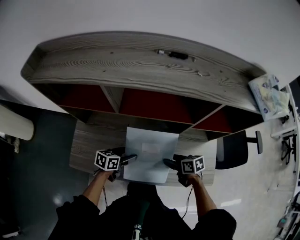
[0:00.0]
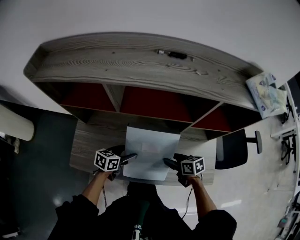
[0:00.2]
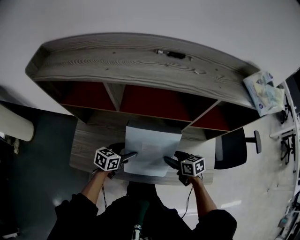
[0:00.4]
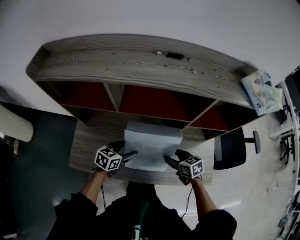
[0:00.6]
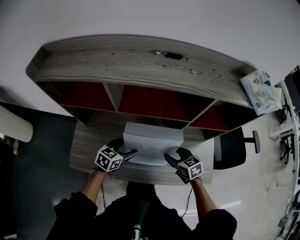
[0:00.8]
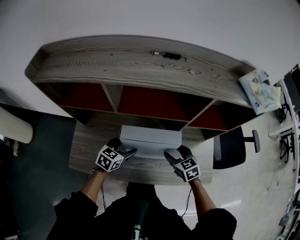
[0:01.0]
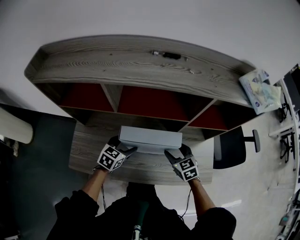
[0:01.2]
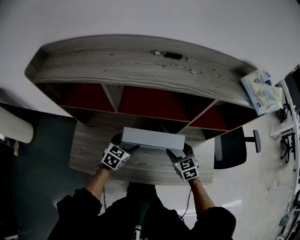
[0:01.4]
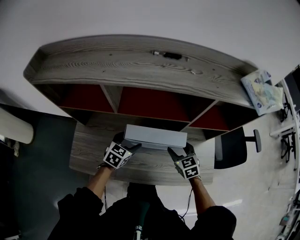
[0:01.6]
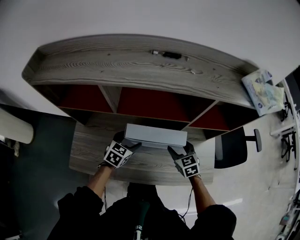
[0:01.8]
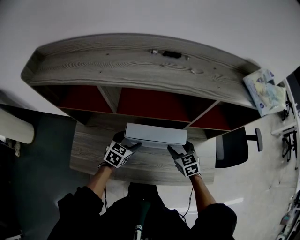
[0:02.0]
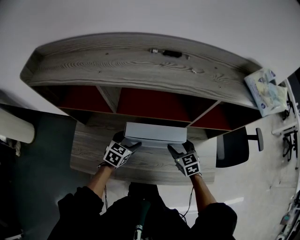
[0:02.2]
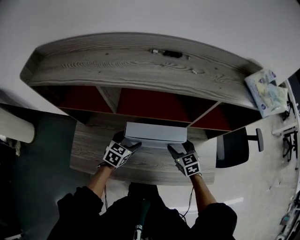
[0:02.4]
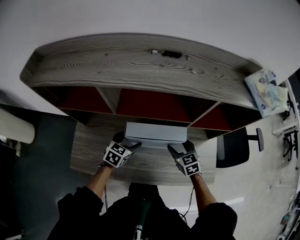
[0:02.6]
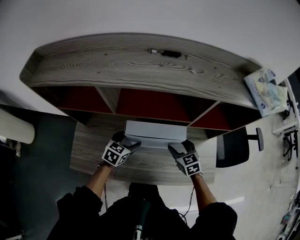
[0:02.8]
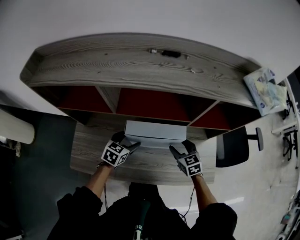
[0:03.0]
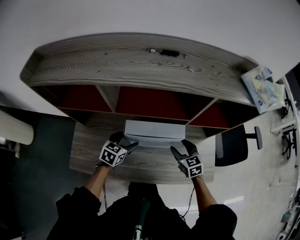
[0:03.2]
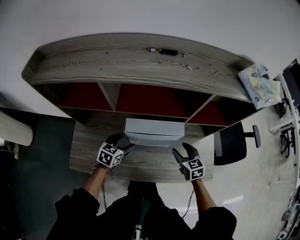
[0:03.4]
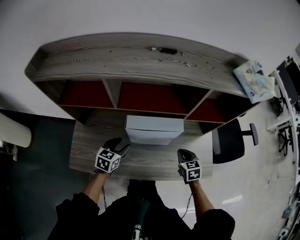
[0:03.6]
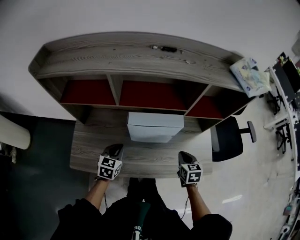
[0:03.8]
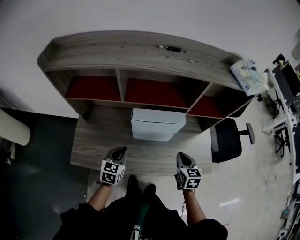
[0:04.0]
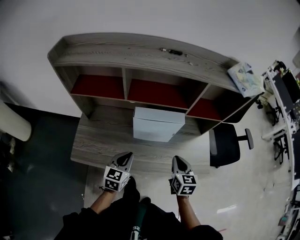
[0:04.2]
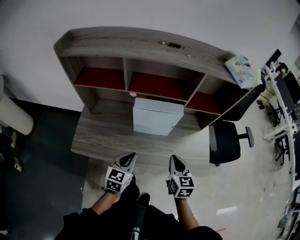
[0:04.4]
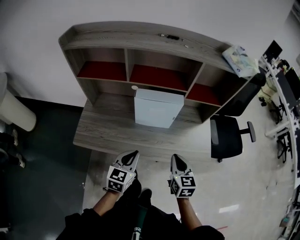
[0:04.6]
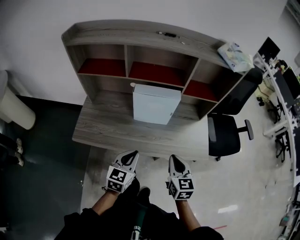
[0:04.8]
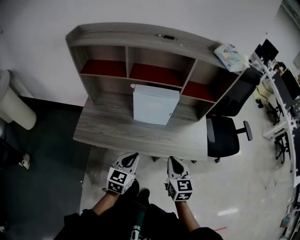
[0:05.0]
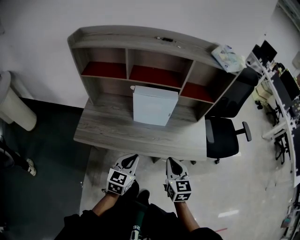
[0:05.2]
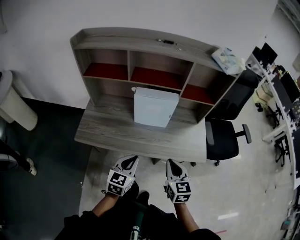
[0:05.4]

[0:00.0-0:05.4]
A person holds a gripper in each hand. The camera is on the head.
0:00.0 to 0:01.4: The right gripper travels upward by about 5 cm, and rotates approximately 50 degrees, while the left gripper goes roughly 5 cm forward, and rotates approximately 30 degrees.
0:01.4 to 0:02.8: The grippers move only a little.
0:02.8 to 0:04.0: Both grippers move backward, about 10 cm. The right gripper swivels some 30 degrees, and closes its fingers; the left gripper closes up.
0:04.0 to 0:05.4: The right gripper travels backward and upward by approximately 20 cm; the left gripper goes roughly 25 cm backward and to the right.

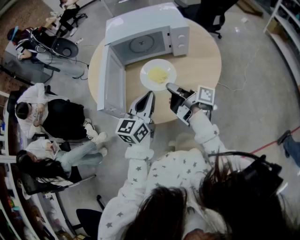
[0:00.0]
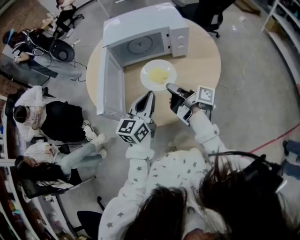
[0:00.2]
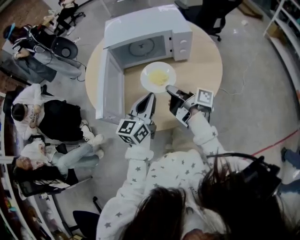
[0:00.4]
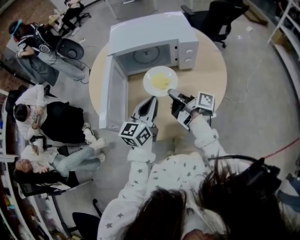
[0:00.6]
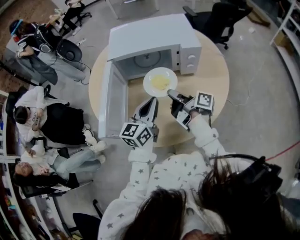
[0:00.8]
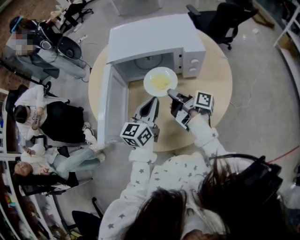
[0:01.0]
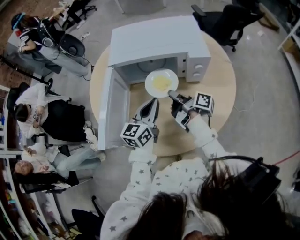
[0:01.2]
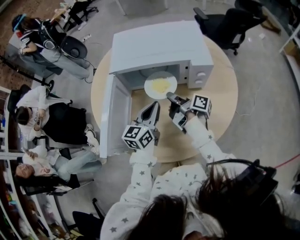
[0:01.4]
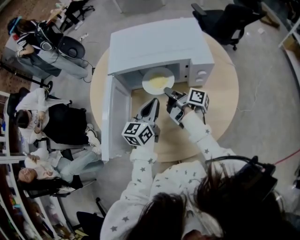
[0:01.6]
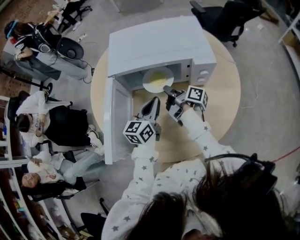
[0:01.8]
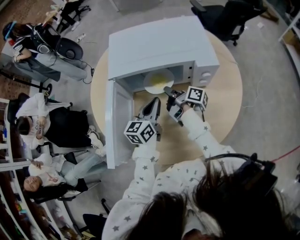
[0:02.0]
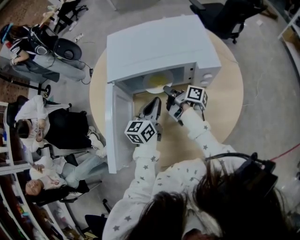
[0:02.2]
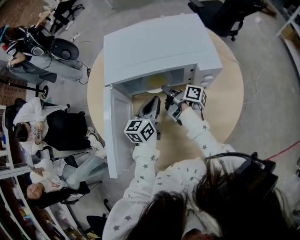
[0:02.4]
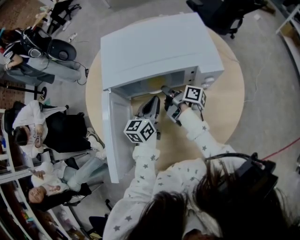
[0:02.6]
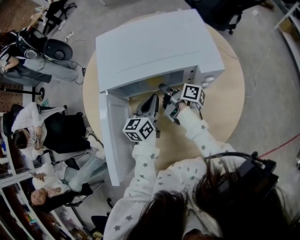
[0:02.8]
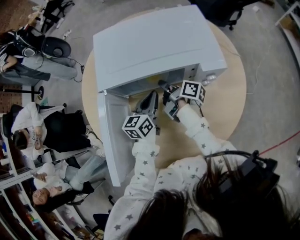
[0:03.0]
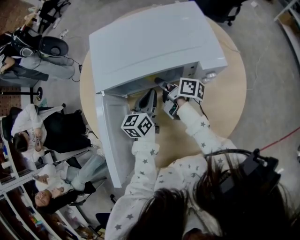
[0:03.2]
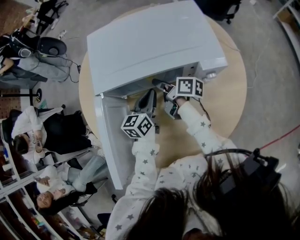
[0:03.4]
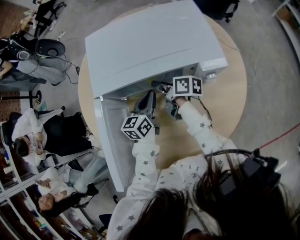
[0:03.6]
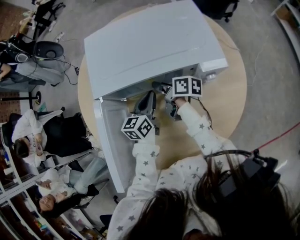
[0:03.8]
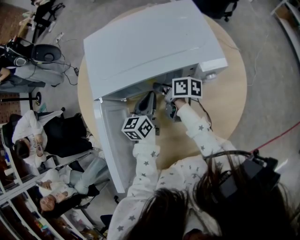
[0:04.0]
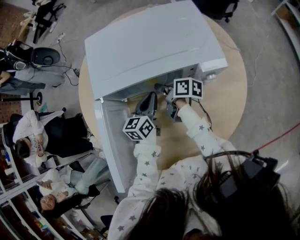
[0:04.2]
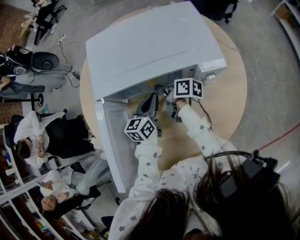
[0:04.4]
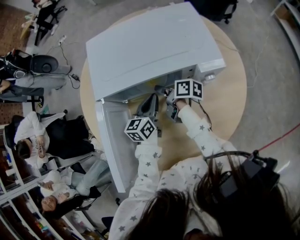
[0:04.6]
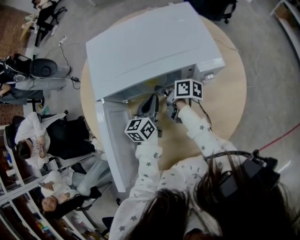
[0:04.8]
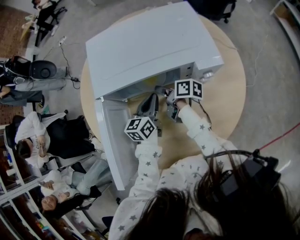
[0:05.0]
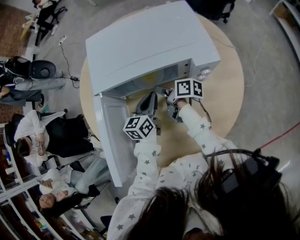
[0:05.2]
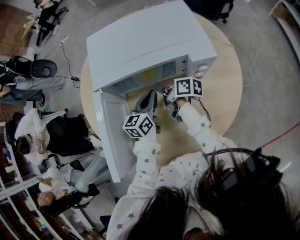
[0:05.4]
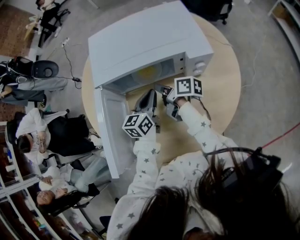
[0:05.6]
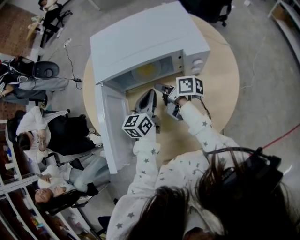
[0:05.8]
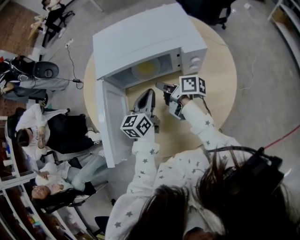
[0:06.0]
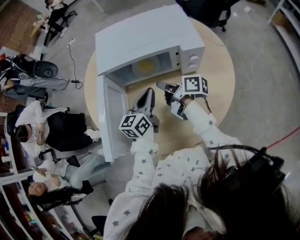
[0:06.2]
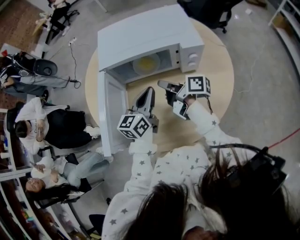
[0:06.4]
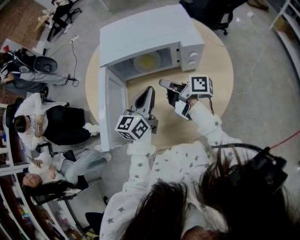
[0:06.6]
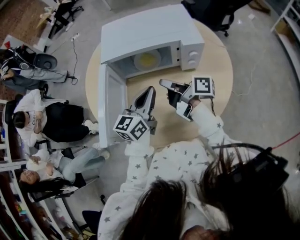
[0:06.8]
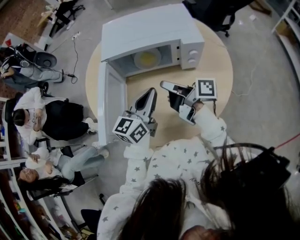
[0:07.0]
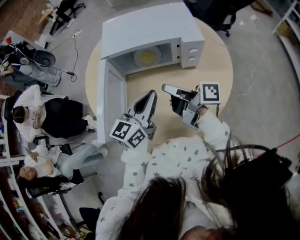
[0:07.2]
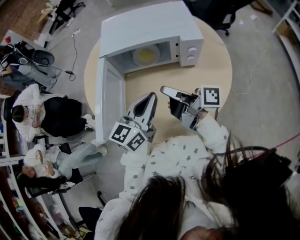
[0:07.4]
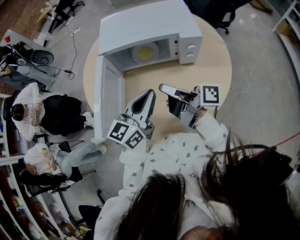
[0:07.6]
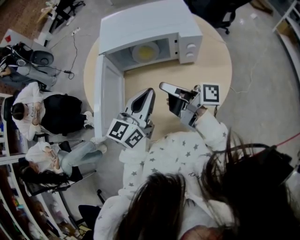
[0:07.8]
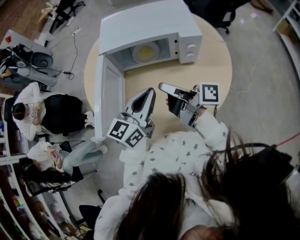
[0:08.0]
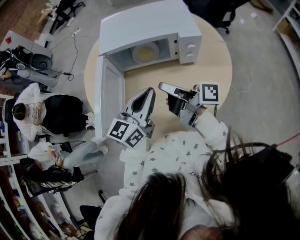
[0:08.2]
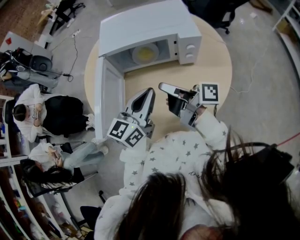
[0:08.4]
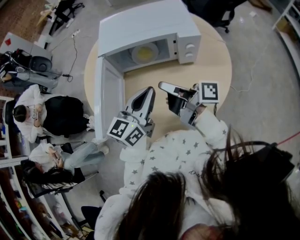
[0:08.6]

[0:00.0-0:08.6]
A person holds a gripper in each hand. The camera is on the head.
0:00.0 to 0:01.4: The left gripper moves about 20 cm.
0:01.4 to 0:02.8: The left gripper shifts by some 10 cm.
0:04.4 to 0:05.8: The left gripper ends up some 10 cm from where it was.
0:05.8 to 0:07.2: The left gripper ends up roughly 20 cm from where it was.

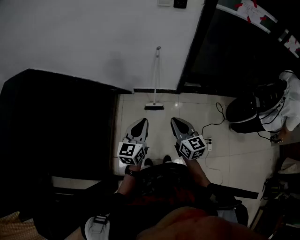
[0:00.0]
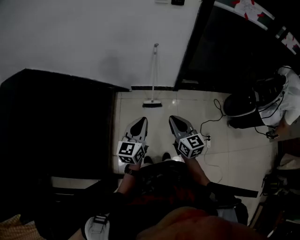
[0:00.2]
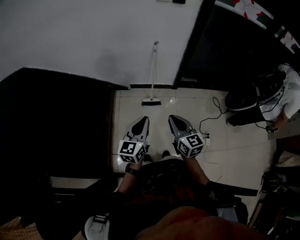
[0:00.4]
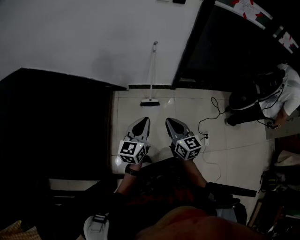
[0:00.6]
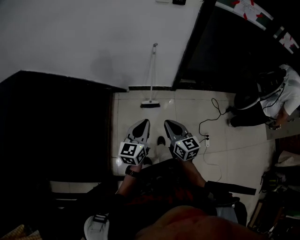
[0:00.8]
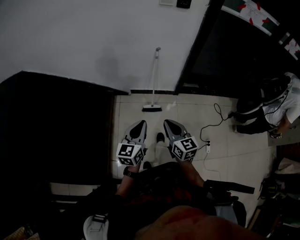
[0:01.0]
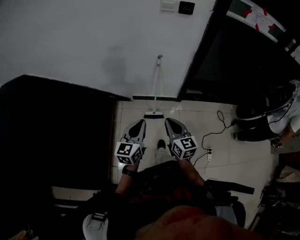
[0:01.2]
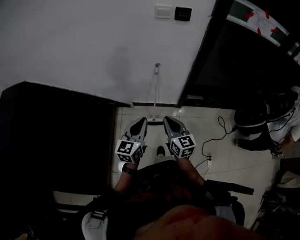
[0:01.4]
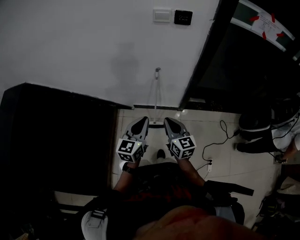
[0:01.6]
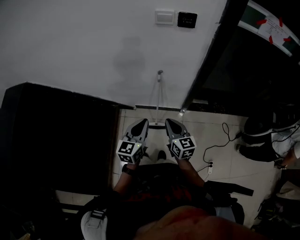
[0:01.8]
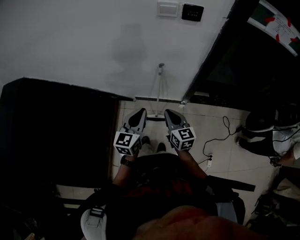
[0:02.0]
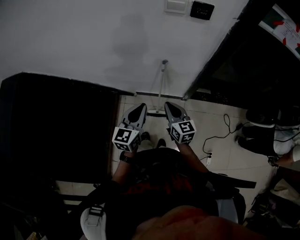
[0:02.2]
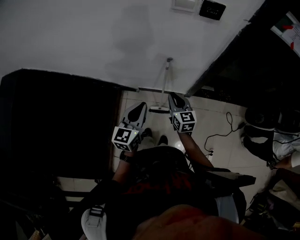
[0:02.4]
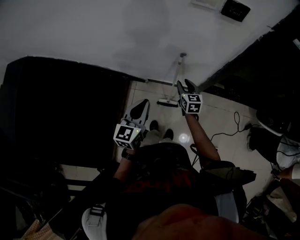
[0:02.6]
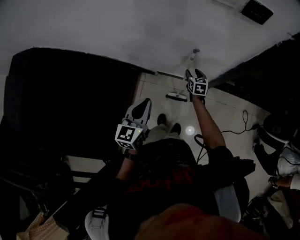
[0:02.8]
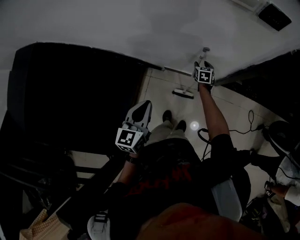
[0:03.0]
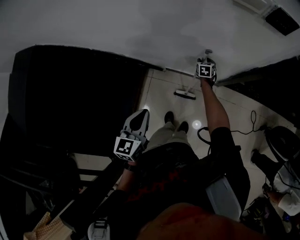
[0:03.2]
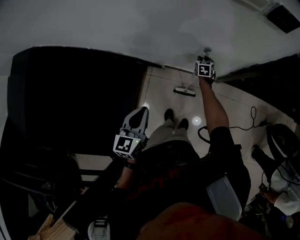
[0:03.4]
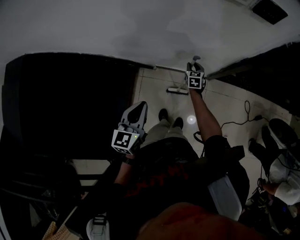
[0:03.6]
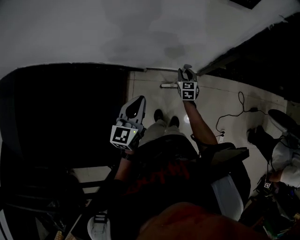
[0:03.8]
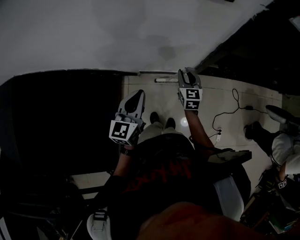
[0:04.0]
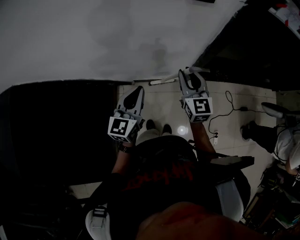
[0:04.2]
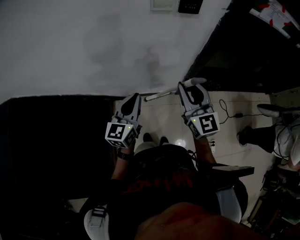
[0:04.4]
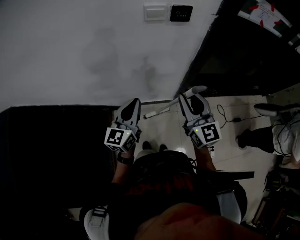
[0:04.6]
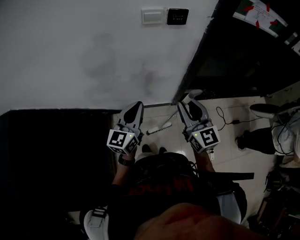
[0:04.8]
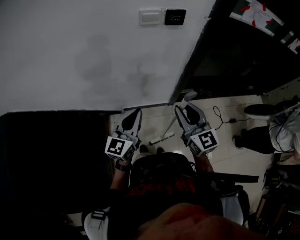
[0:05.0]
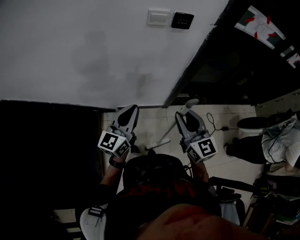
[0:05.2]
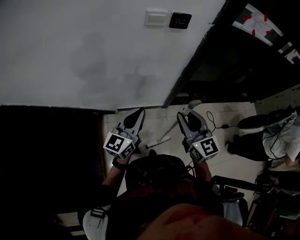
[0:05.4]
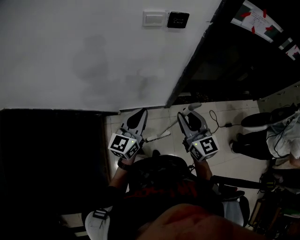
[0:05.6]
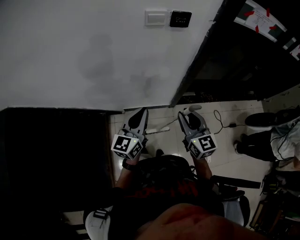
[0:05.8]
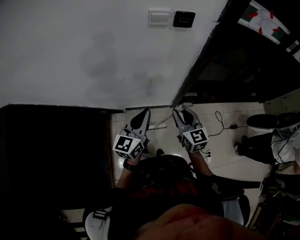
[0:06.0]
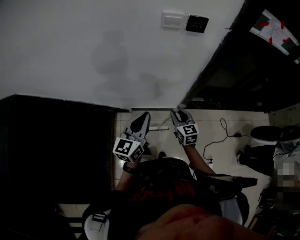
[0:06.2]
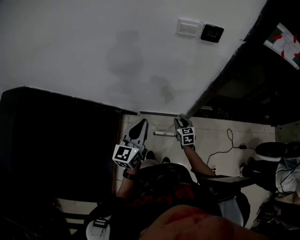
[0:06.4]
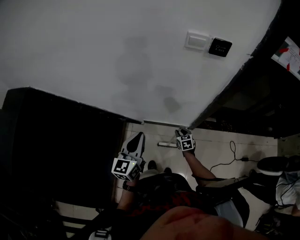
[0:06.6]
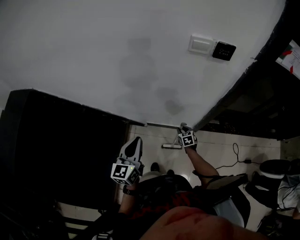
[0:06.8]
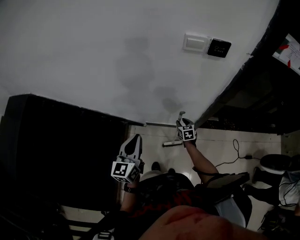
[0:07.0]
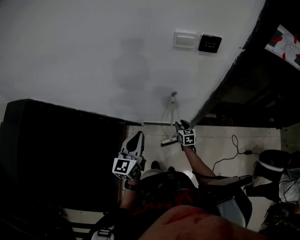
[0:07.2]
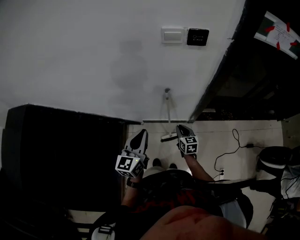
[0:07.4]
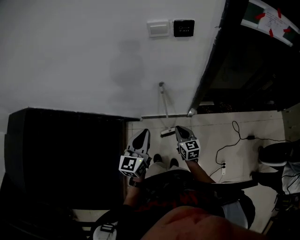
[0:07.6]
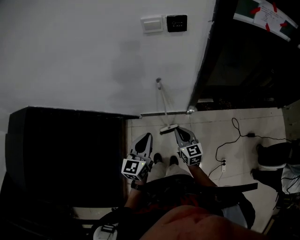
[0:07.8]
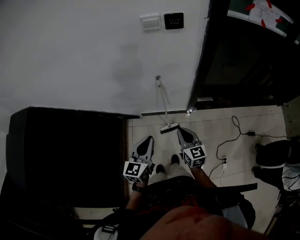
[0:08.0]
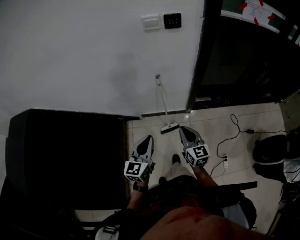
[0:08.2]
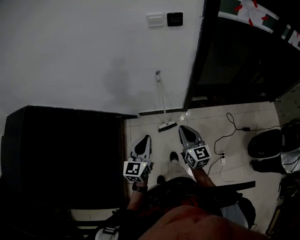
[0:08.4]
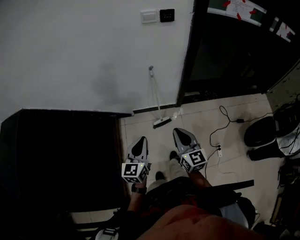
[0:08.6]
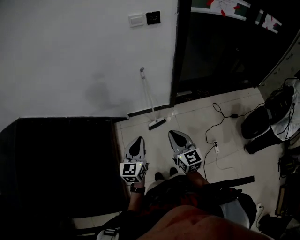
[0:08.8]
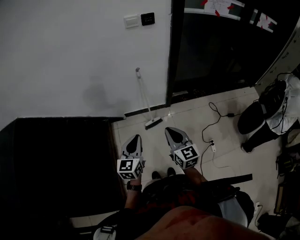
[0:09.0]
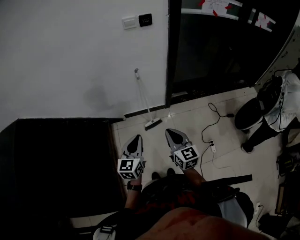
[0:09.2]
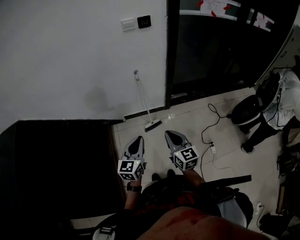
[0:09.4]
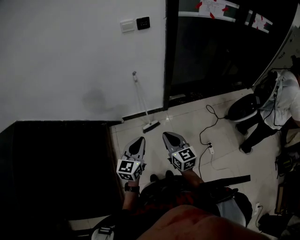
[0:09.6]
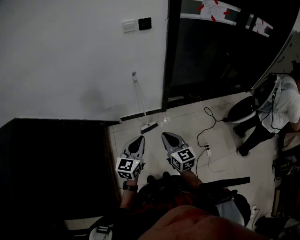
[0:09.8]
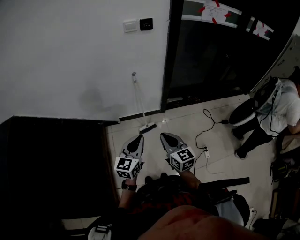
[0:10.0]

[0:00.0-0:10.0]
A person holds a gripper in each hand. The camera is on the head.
0:00.0 to 0:01.4: The grippers both shift forward by about 20 cm.
0:01.4 to 0:02.8: The right gripper is displaced forward and downward by approximately 50 cm, rotates roughly 30 degrees, and opens; the left gripper is displaced forward and to the left by about 20 cm.
0:02.8 to 0:04.2: The left gripper is displaced upward, to the right and forward by about 10 cm, while the right gripper goes roughly 30 cm upward, swivels some 30 degrees, and closes up.
0:04.2 to 0:05.8: The left gripper shifts roughly 5 cm to the right. Meanwhile the right gripper travels backward and to the right by approximately 15 cm.
0:05.8 to 0:07.2: The left gripper is displaced to the left by roughly 10 cm. The right gripper heads downward and forward, covering about 35 cm, and turns by approximately 30 degrees.
0:07.2 to 0:08.6: The left gripper moves backward, roughly 25 cm, while the right gripper is displaced backward and upward by roughly 50 cm, changes its angle by approximately 30 degrees, and closes its fingers.
0:08.6 to 0:10.0: The left gripper moves to the right and backward, about 10 cm; the right gripper goes some 5 cm backward.
